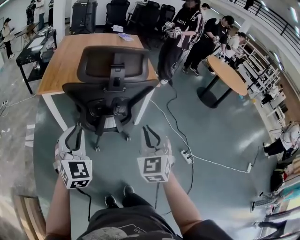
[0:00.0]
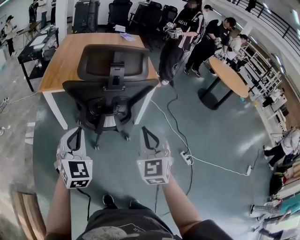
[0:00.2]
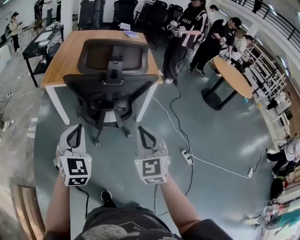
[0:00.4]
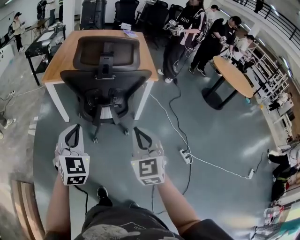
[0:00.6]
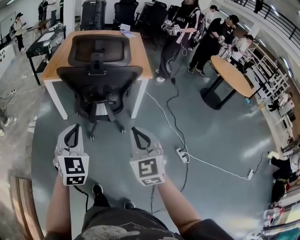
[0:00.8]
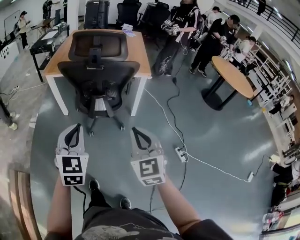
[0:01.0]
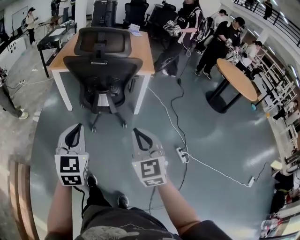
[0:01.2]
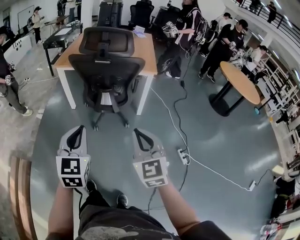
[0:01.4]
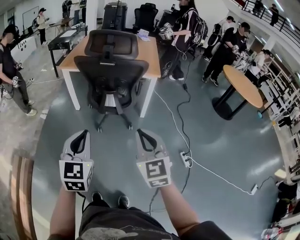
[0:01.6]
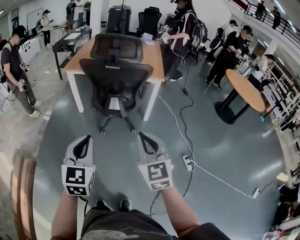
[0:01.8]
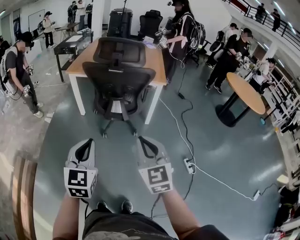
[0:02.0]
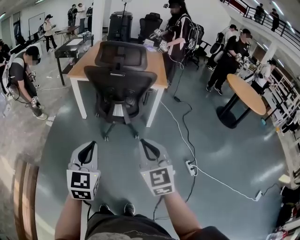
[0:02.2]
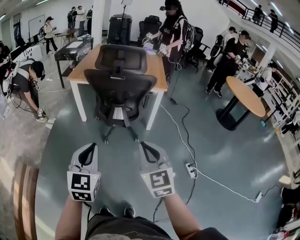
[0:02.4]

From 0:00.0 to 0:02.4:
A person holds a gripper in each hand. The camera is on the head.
From 0:00.0 to 0:01.2: The two grippers go some 25 cm backward and to the right. The left gripper turns by roughly 20 degrees; the right gripper rotates approximately 20 degrees.
From 0:01.2 to 0:02.4: The left gripper is displaced backward by some 5 cm. The right gripper shifts by some 5 cm.

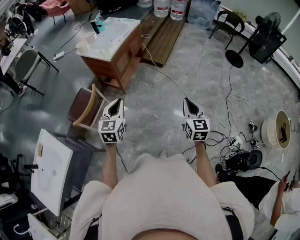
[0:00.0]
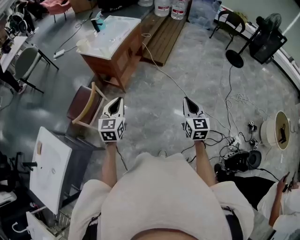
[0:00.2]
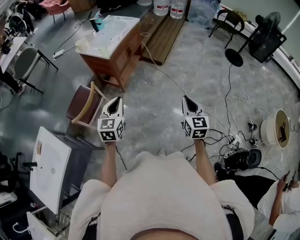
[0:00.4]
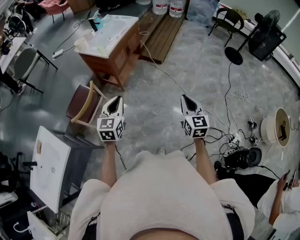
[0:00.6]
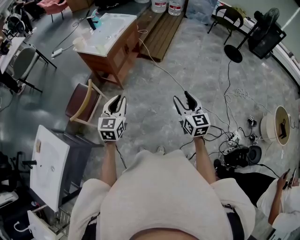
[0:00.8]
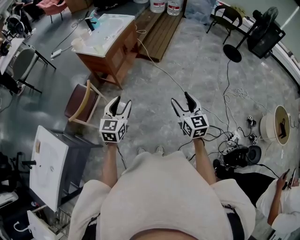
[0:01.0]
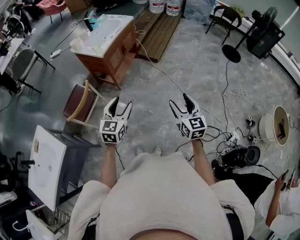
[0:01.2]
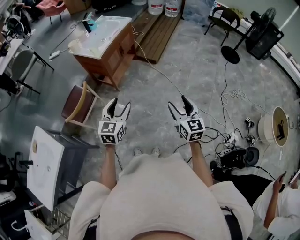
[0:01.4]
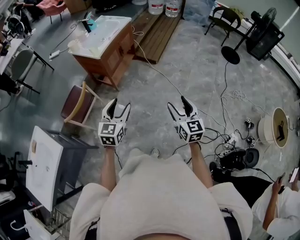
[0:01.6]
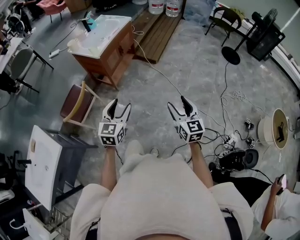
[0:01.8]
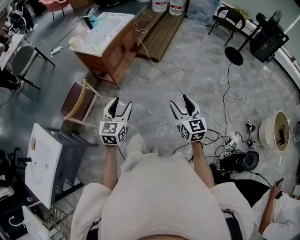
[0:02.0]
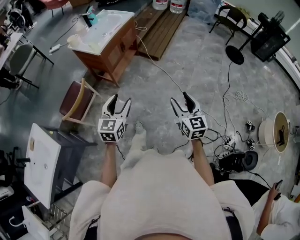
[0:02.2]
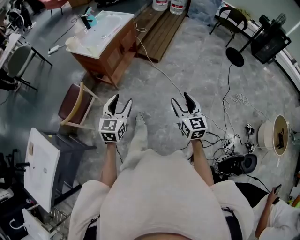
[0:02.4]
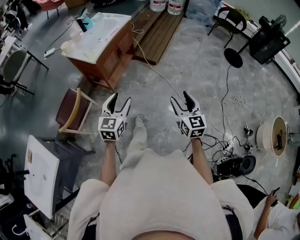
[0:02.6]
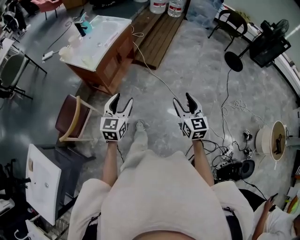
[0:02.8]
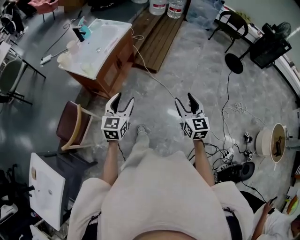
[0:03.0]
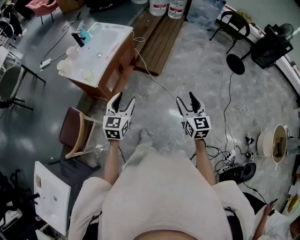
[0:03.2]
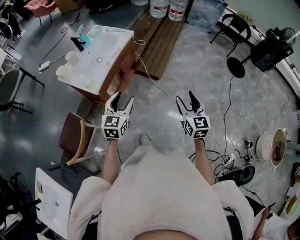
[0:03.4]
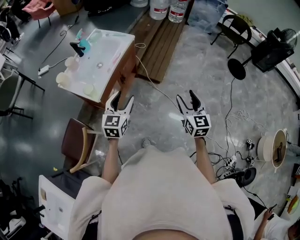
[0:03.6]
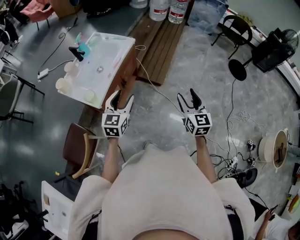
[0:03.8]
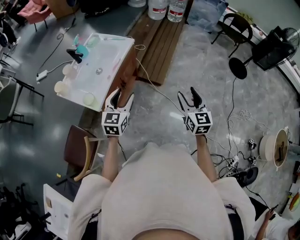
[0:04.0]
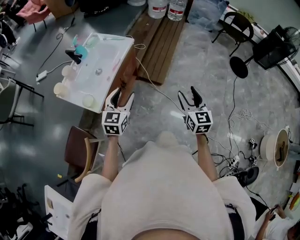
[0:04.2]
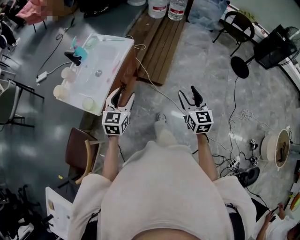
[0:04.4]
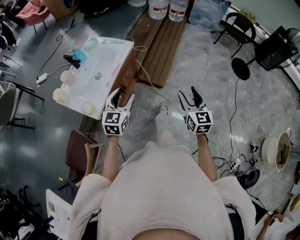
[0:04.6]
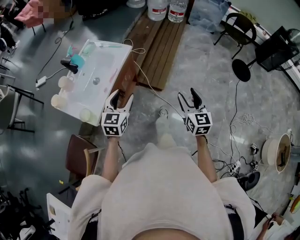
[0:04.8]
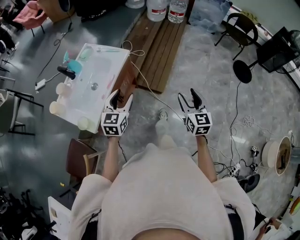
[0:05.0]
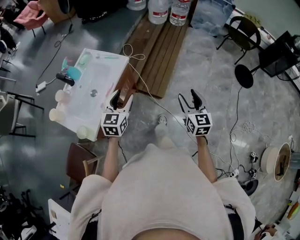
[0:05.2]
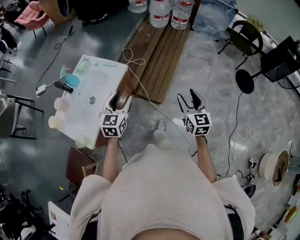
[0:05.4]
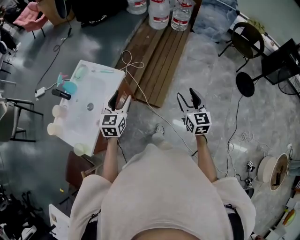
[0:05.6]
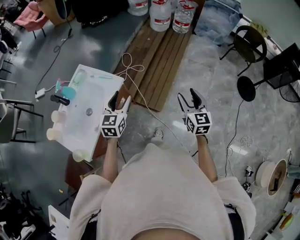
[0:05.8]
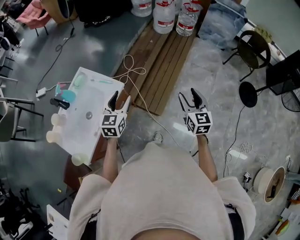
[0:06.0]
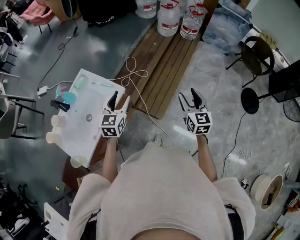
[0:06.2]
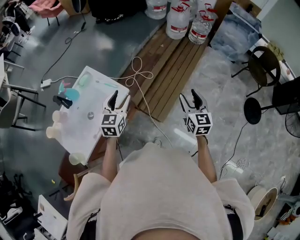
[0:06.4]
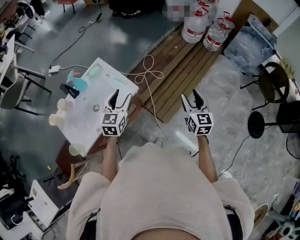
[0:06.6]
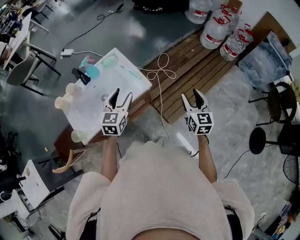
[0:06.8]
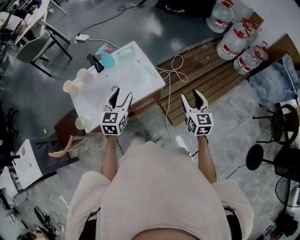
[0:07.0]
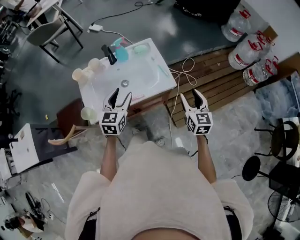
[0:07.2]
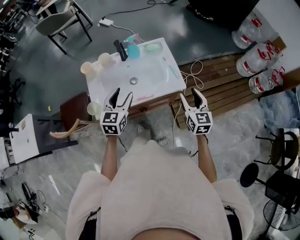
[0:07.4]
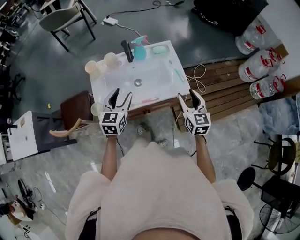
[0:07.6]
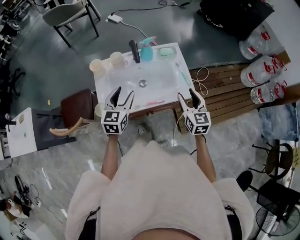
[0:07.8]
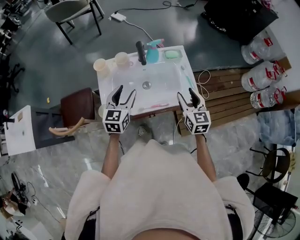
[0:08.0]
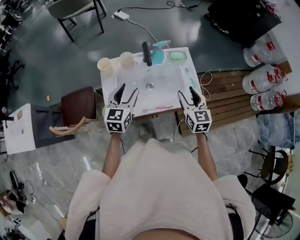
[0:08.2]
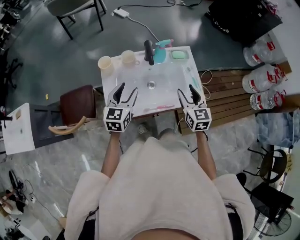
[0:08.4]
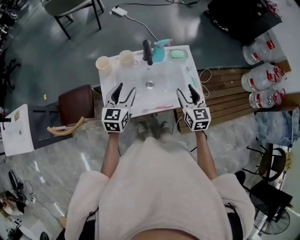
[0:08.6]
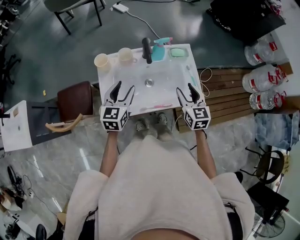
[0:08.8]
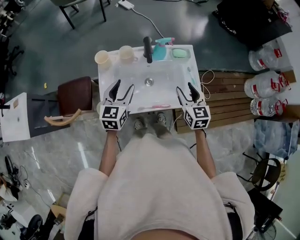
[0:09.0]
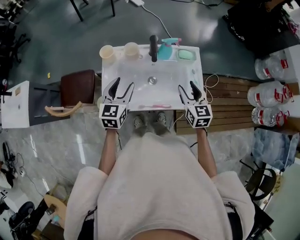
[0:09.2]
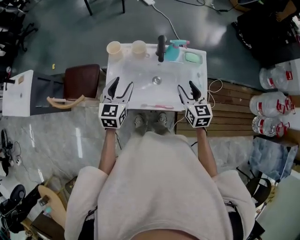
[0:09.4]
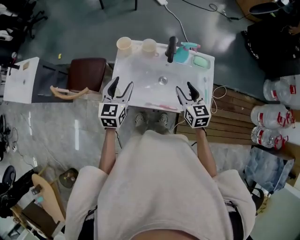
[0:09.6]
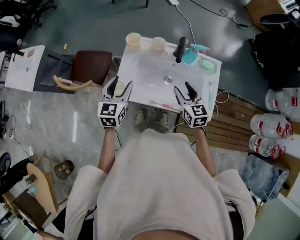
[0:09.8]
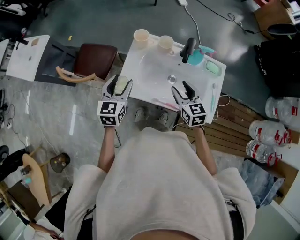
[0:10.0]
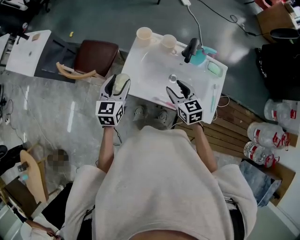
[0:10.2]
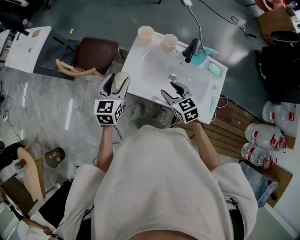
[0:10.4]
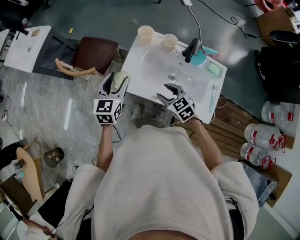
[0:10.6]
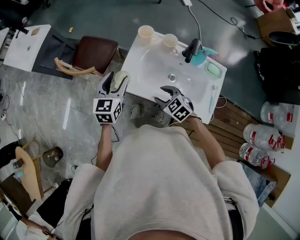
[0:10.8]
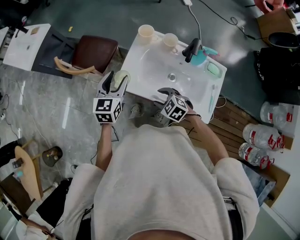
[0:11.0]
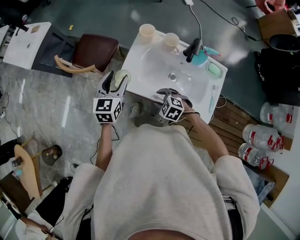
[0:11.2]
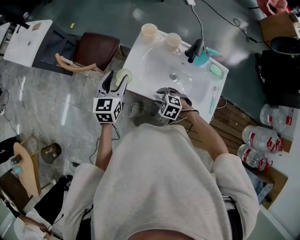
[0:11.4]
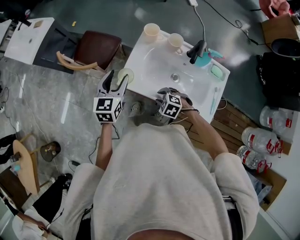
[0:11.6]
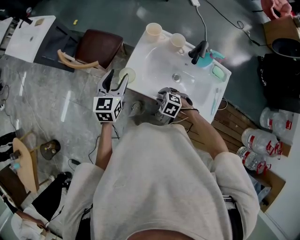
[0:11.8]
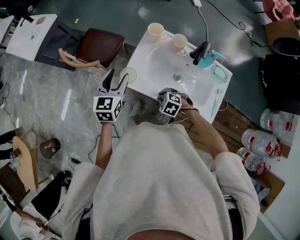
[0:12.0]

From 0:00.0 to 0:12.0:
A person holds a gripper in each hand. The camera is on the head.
From 0:00.0 to 0:01.6: The right gripper ends up about 5 cm from where it was, and opens its fingers. Meanwhile the left gripper moves to the right, approximately 10 cm, and opens its fingers.
From 0:01.6 to 0:03.0: The grippers both shift forward by approximately 30 cm.
From 0:03.0 to 0:04.4: The grippers both shift forward by approximately 30 cm.
From 0:04.4 to 0:06.0: Both grippers travel together forward, approximately 40 cm.
From 0:06.0 to 0:07.6: The left gripper shifts by about 30 cm, and swivels some 50 degrees, while the right gripper changes place by about 35 cm, and turns by roughly 50 degrees.
From 0:07.6 to 0:09.0: The left gripper shifts roughly 10 cm to the left and forward, while the right gripper is displaced forward and to the left by some 15 cm.
From 0:09.0 to 0:10.4: The left gripper moves approximately 15 cm, and turns by approximately 30 degrees; the right gripper shifts by approximately 20 cm, and swivels some 50 degrees.
From 0:10.4 to 0:12.0: The right gripper heads downward and to the left, covering some 15 cm, points its fingers approximately 30 degrees further downward, and closes up.

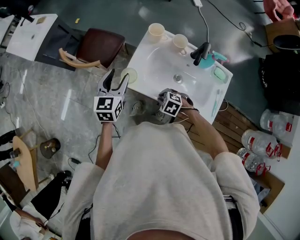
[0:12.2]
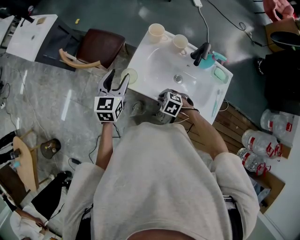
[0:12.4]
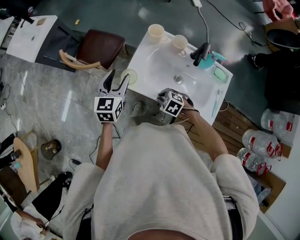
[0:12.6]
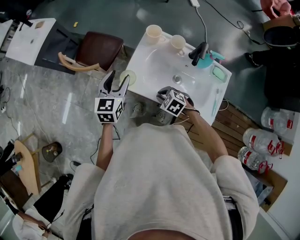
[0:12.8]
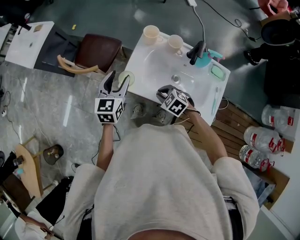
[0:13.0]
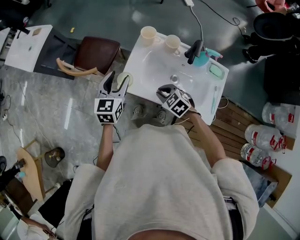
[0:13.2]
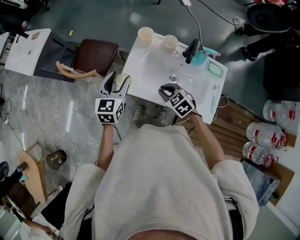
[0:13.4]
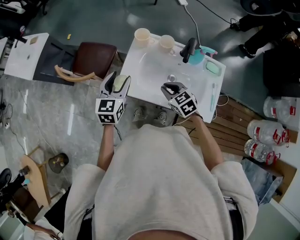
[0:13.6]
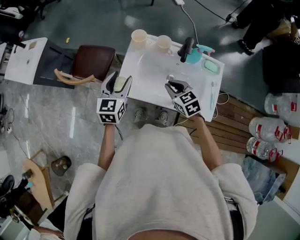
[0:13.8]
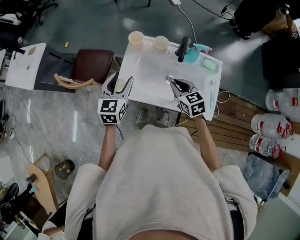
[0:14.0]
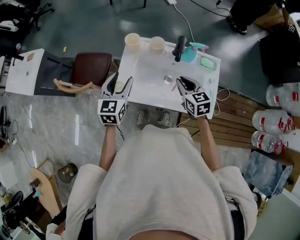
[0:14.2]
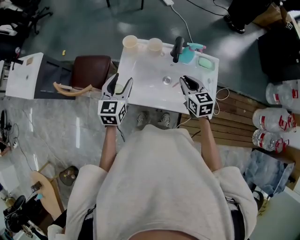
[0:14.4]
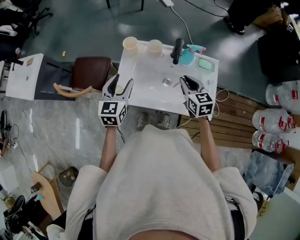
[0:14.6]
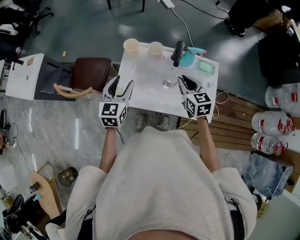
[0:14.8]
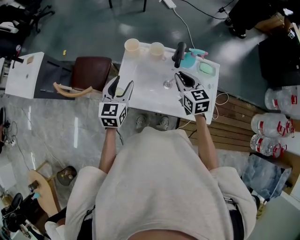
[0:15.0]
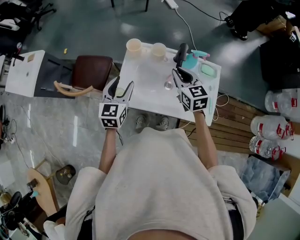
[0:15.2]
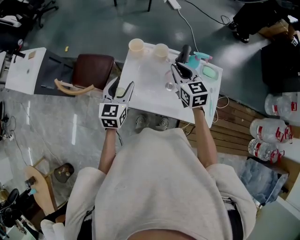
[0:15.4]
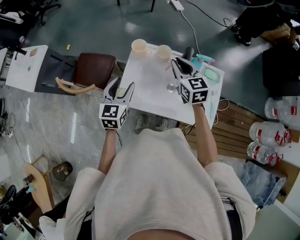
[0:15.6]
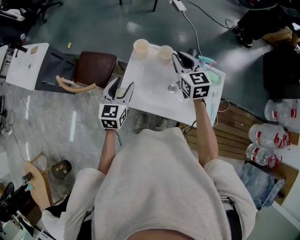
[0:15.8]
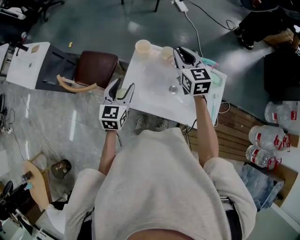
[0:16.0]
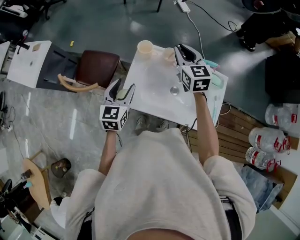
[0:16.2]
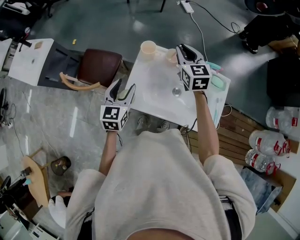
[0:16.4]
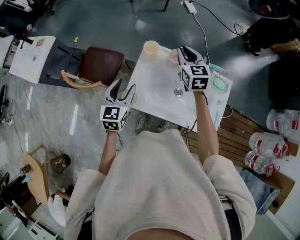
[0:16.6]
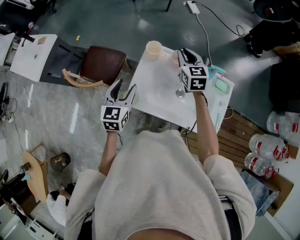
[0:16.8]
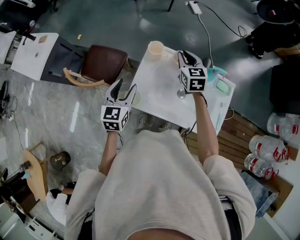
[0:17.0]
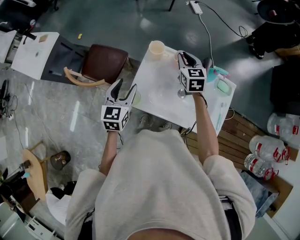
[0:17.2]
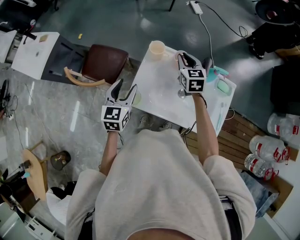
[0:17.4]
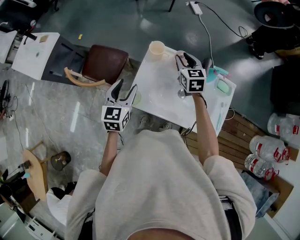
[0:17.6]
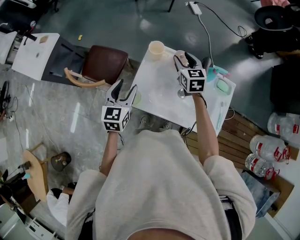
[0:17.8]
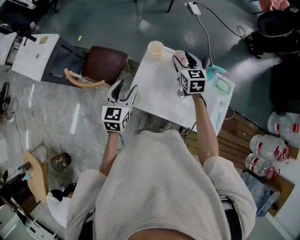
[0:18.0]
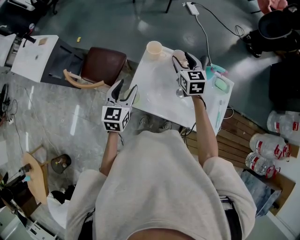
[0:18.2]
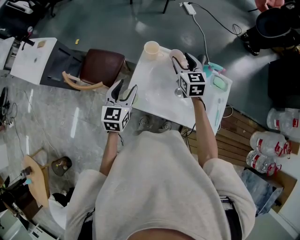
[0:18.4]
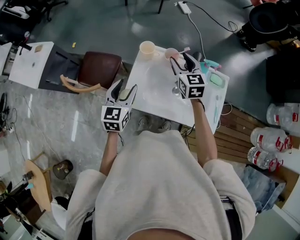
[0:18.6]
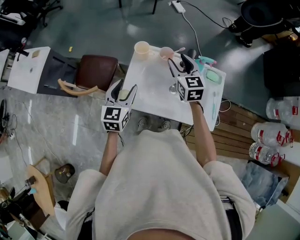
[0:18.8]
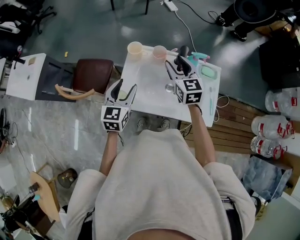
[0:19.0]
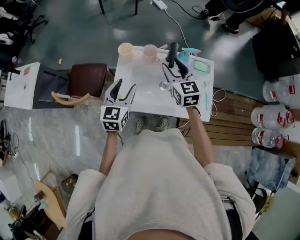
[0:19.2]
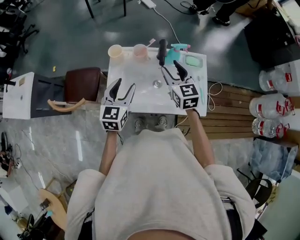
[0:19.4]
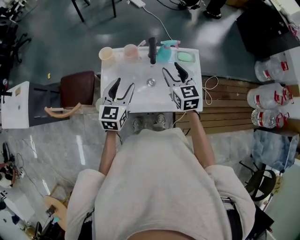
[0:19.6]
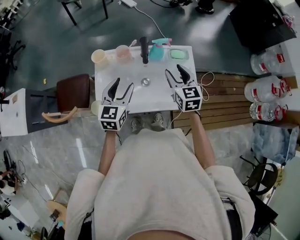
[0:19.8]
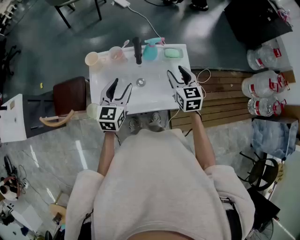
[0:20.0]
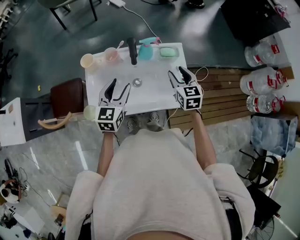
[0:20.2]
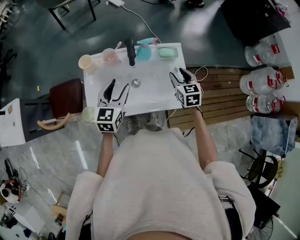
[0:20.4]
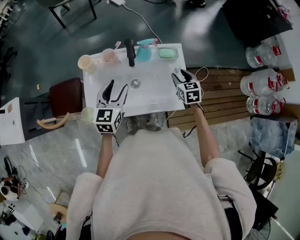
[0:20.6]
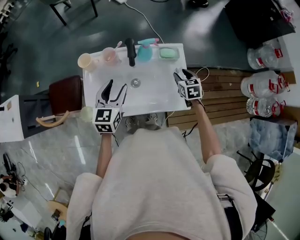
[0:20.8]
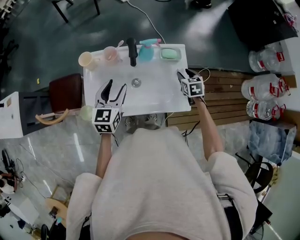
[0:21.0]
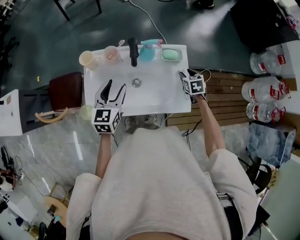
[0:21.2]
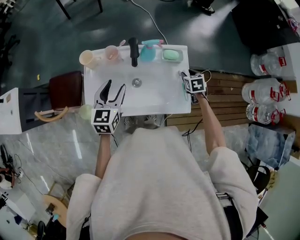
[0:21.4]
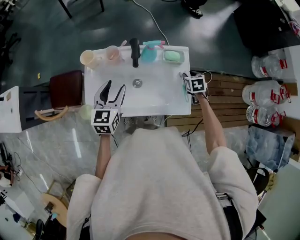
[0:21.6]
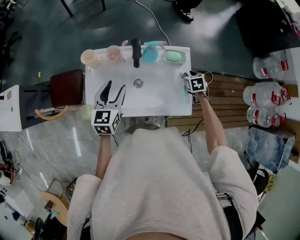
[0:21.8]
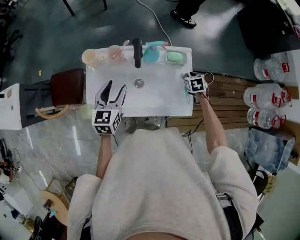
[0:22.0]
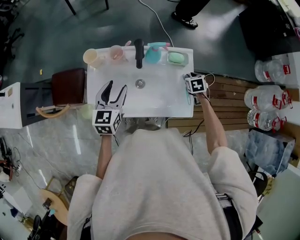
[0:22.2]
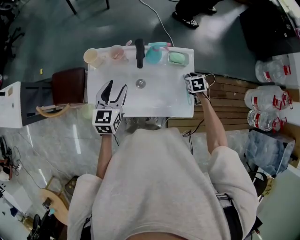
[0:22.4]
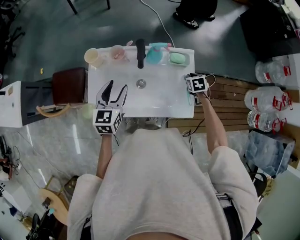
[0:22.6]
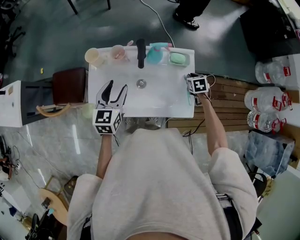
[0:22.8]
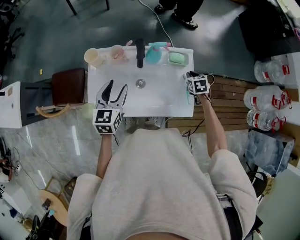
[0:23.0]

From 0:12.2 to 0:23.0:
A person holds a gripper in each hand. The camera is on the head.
From 0:12.2 to 0:13.8: The left gripper changes place by approximately 5 cm. Meanwhile the right gripper moves upward, some 15 cm, and turns by approximately 50 degrees.
From 0:13.8 to 0:15.2: The right gripper heads forward, upward and to the right, covering approximately 15 cm, and rotates about 20 degrees.
From 0:15.2 to 0:16.8: The right gripper travels forward and to the left by about 15 cm, while the left gripper is displaced to the left by approximately 5 cm.
From 0:16.8 to 0:18.4: The right gripper opens up.
From 0:18.4 to 0:20.0: The right gripper is displaced to the right and backward by roughly 30 cm, and turns by approximately 20 degrees. The left gripper heads to the right, covering about 20 cm, and turns by approximately 20 degrees.
From 0:20.0 to 0:21.4: The right gripper moves downward and to the right, roughly 20 cm, and points its fingers approximately 30 degrees further downward.
From 0:21.4 to 0:23.0: The right gripper closes up.
